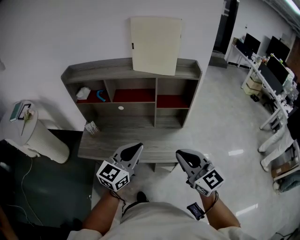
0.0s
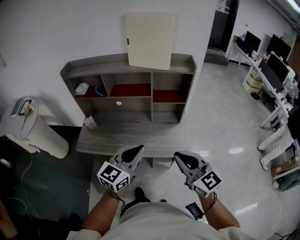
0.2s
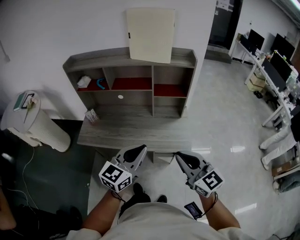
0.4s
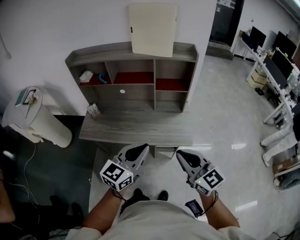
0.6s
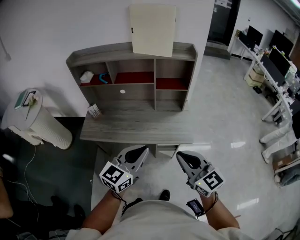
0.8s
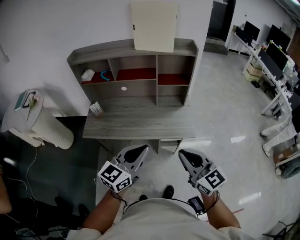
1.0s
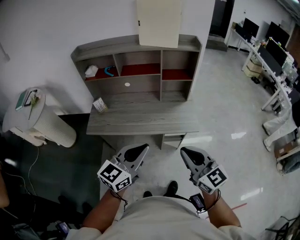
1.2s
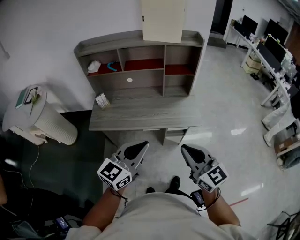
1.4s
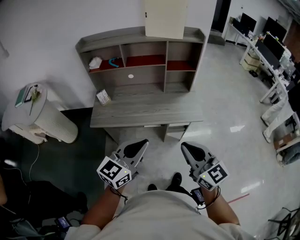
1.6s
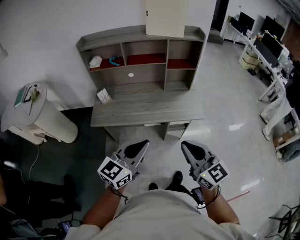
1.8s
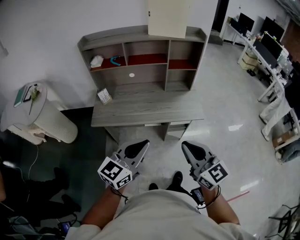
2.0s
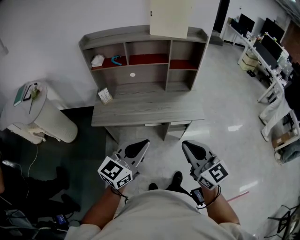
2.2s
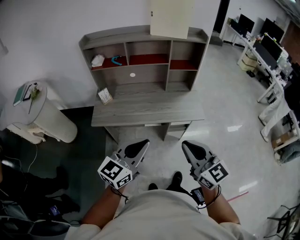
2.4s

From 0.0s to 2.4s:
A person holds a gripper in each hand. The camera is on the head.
From 0.0s to 1.2s: The grippers both shift backward by approximately 15 cm.
From 1.2s to 2.4s: Both grippers move to the left and backward, some 10 cm.

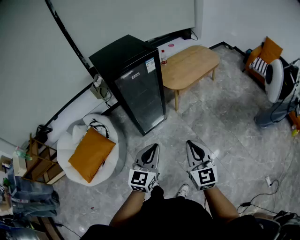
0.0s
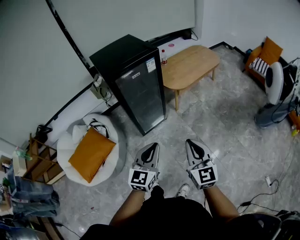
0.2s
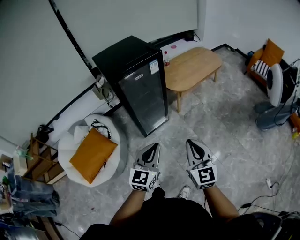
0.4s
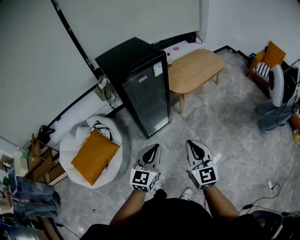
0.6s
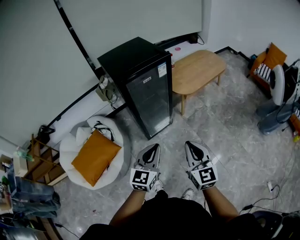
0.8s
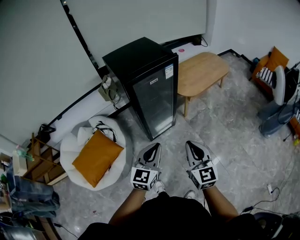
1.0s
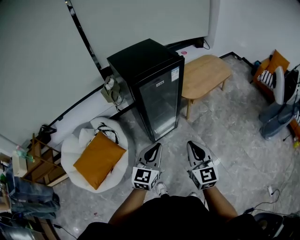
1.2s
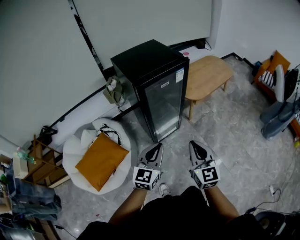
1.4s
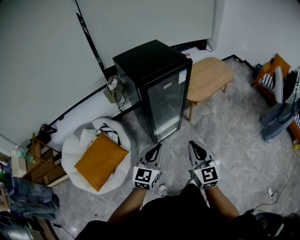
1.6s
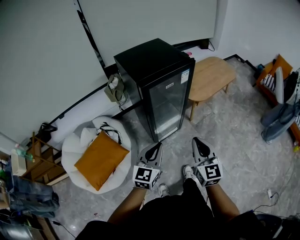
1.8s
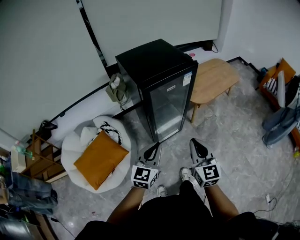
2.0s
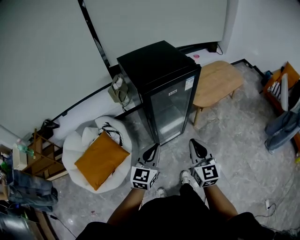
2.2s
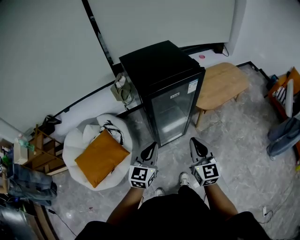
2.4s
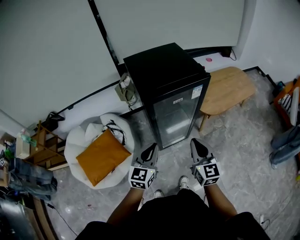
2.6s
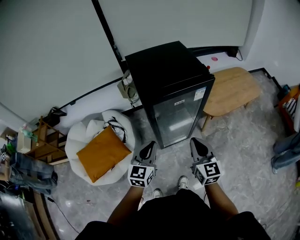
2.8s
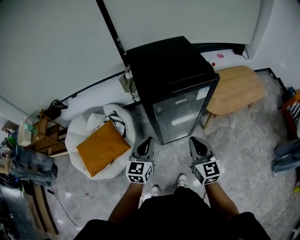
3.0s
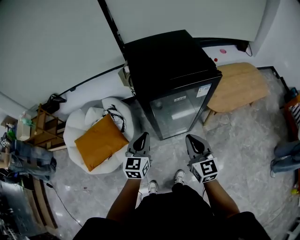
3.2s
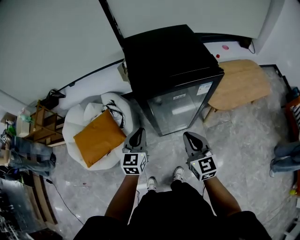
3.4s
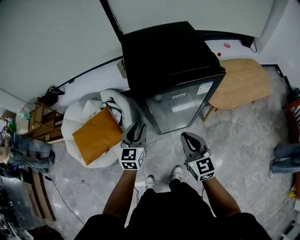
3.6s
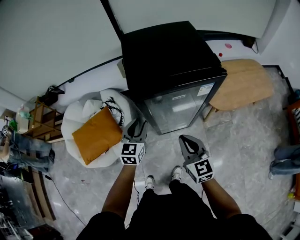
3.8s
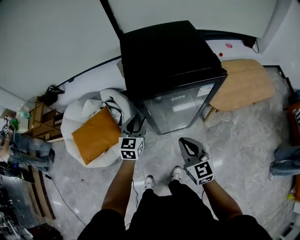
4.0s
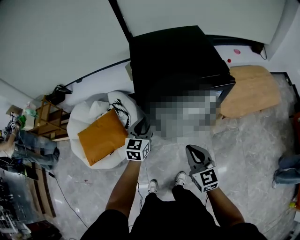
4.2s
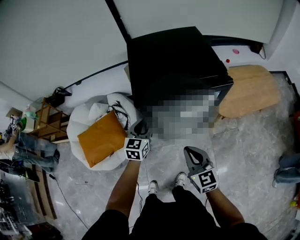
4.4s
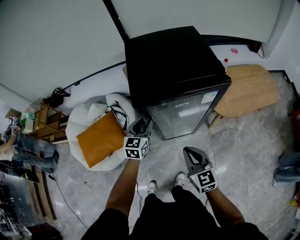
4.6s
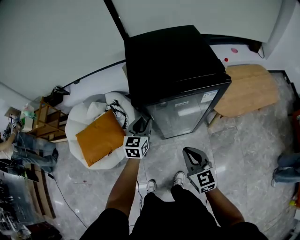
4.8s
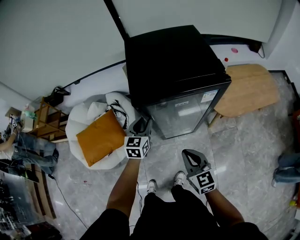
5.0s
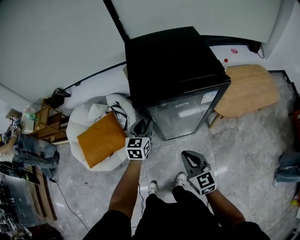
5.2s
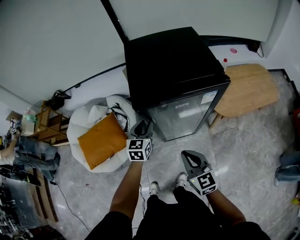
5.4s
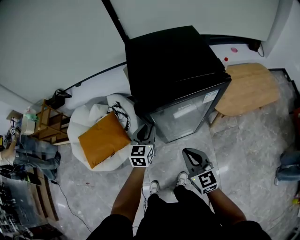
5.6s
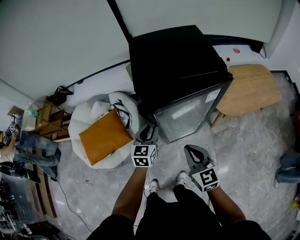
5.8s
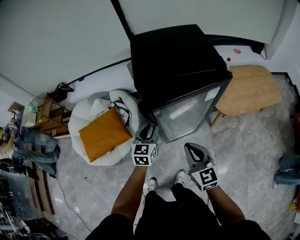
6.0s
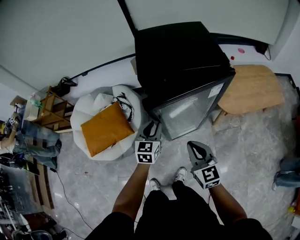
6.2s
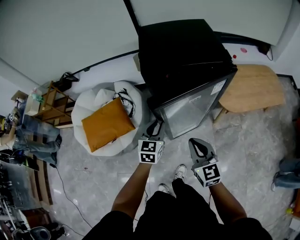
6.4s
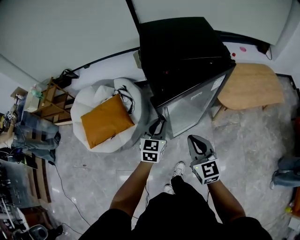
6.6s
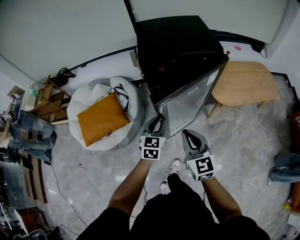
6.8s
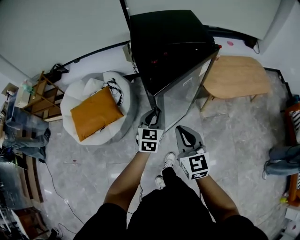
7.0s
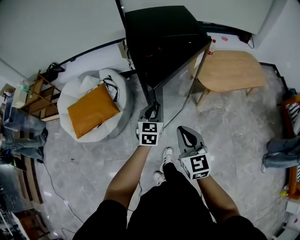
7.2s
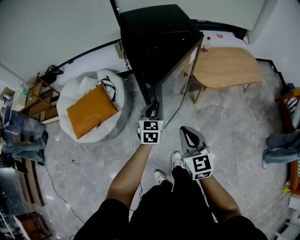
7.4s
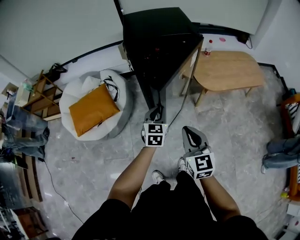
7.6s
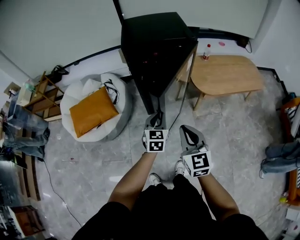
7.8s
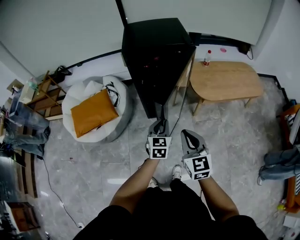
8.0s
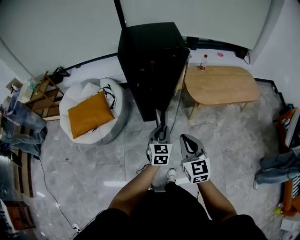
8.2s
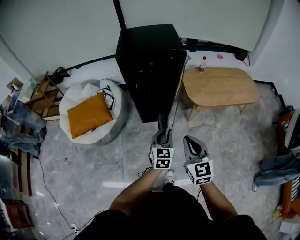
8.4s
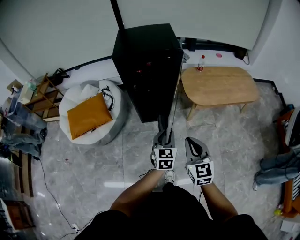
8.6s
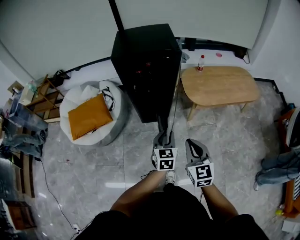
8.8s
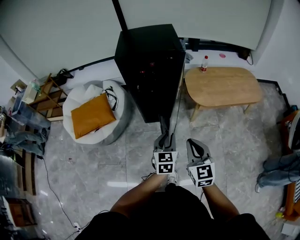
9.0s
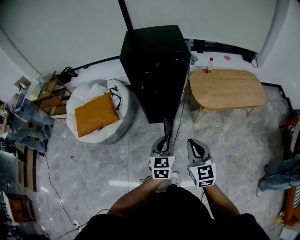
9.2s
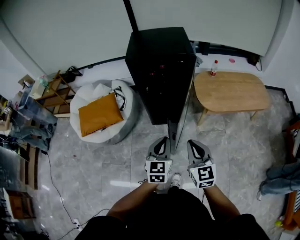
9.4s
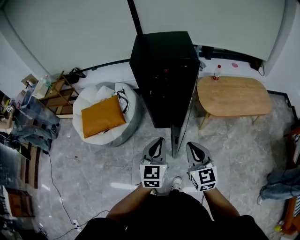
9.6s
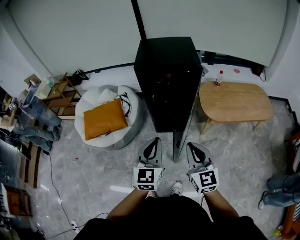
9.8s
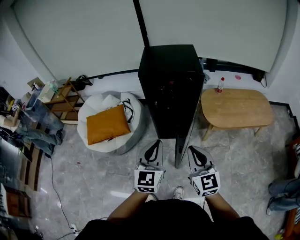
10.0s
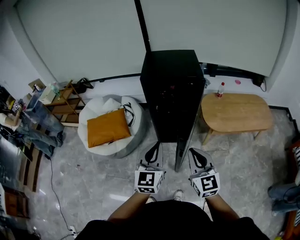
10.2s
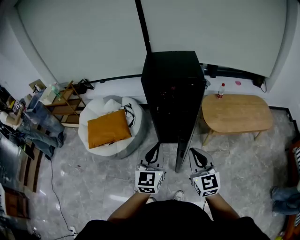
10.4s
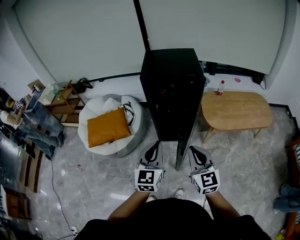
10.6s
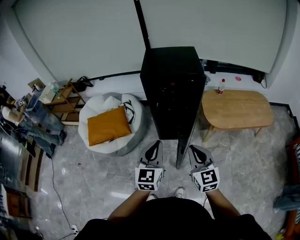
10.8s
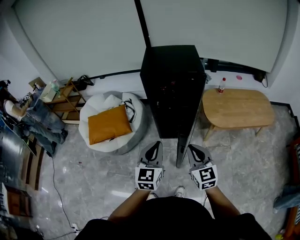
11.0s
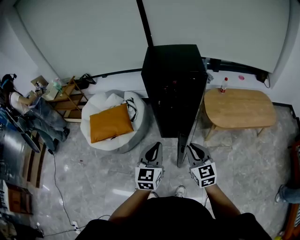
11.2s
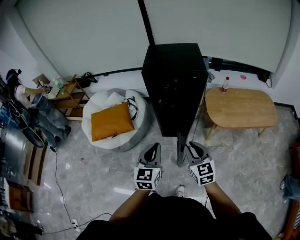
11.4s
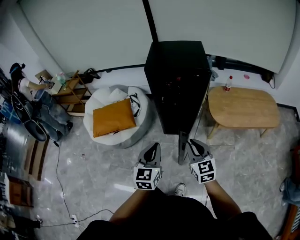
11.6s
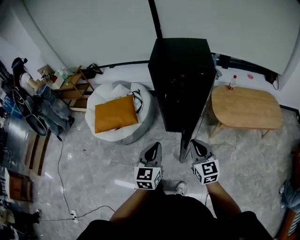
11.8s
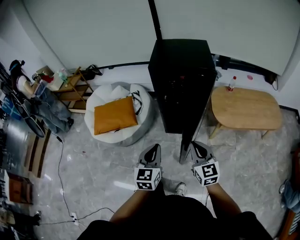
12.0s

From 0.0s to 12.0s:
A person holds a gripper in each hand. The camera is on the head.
From 0.0s to 1.6s: The grippers both shift to the left and forward by about 20 cm.
From 1.6s to 3.0s: The two grippers go roughly 20 cm forward. The left gripper rotates about 20 degrees.
From 3.0s to 4.4s: The left gripper moves forward and downward, about 15 cm, and opens up; the right gripper shifts some 5 cm downward.
From 4.4s to 6.0s: The left gripper heads backward, covering about 5 cm.
From 6.0s to 7.6s: The left gripper travels backward and to the right by roughly 20 cm. The right gripper goes about 20 cm backward.
From 7.6s to 9.0s: The right gripper goes roughly 15 cm to the right. Meanwhile the left gripper is displaced to the right and backward by some 15 cm.
From 9.0s to 10.4s: The left gripper moves upward and to the left, roughly 20 cm, and swivels roughly 20 degrees. The right gripper travels upward and to the left by approximately 10 cm.
From 10.4s to 12.0s: The grippers both shift downward by approximately 10 cm.

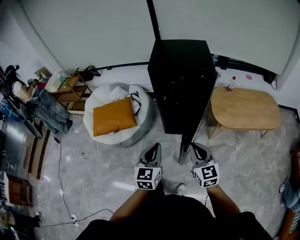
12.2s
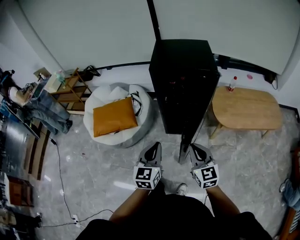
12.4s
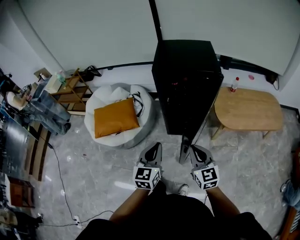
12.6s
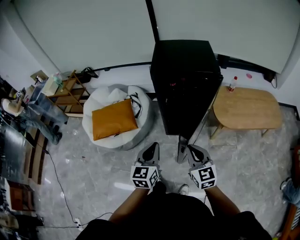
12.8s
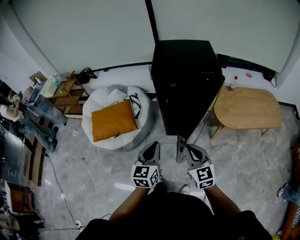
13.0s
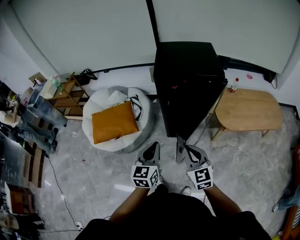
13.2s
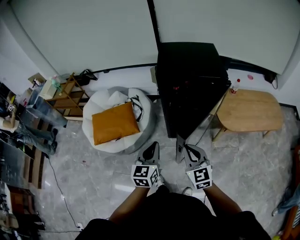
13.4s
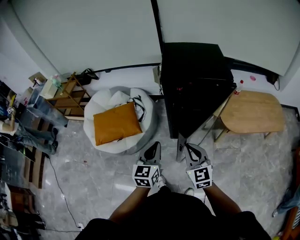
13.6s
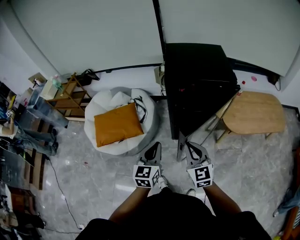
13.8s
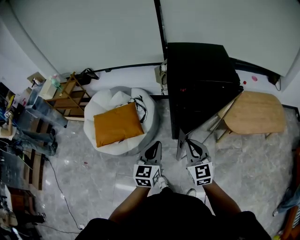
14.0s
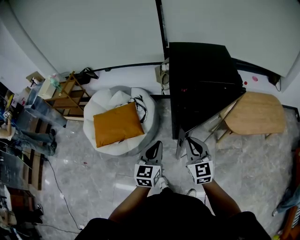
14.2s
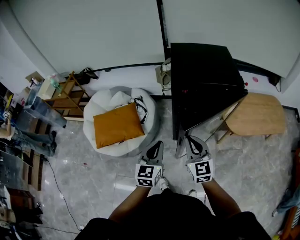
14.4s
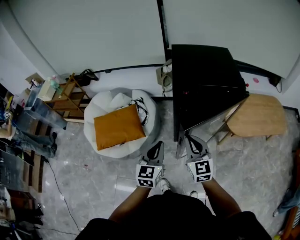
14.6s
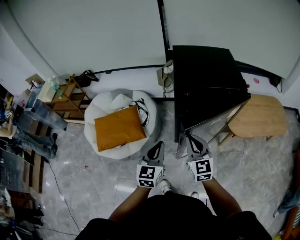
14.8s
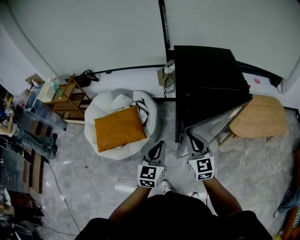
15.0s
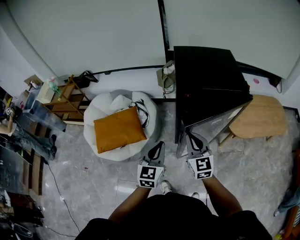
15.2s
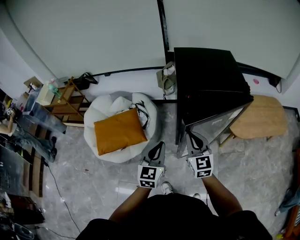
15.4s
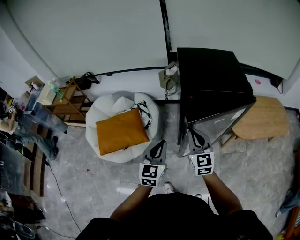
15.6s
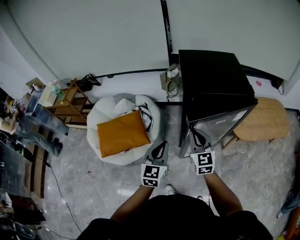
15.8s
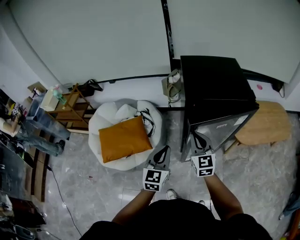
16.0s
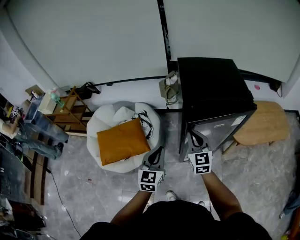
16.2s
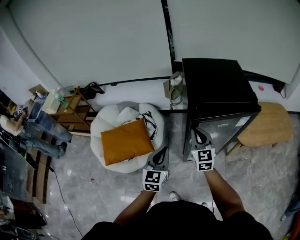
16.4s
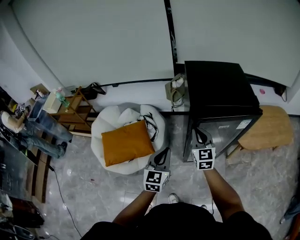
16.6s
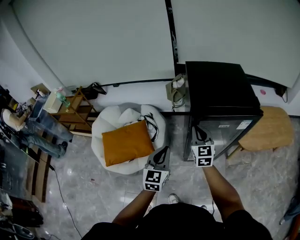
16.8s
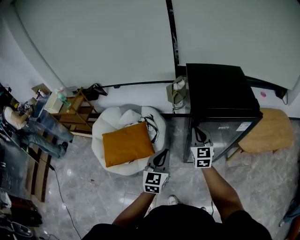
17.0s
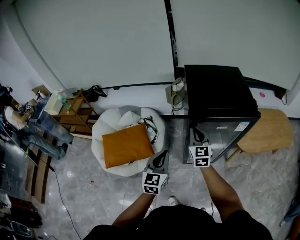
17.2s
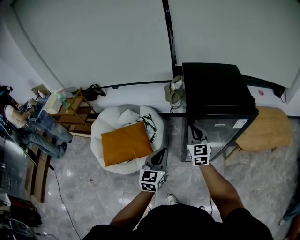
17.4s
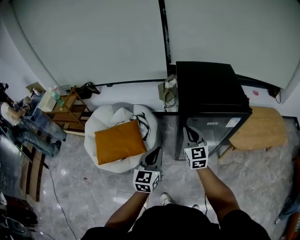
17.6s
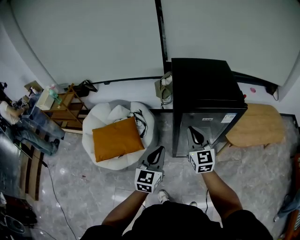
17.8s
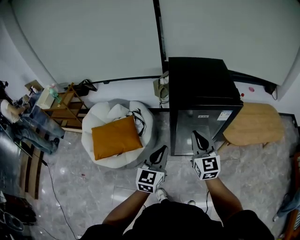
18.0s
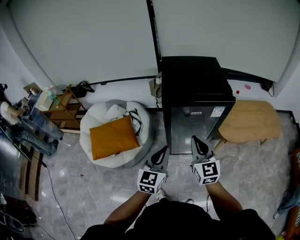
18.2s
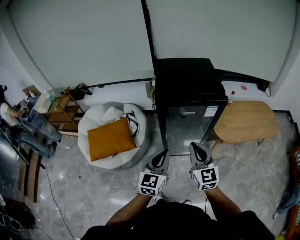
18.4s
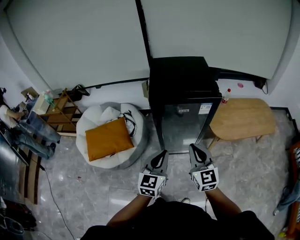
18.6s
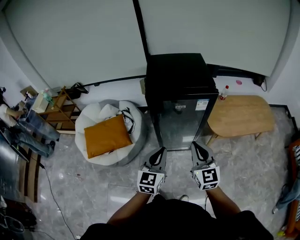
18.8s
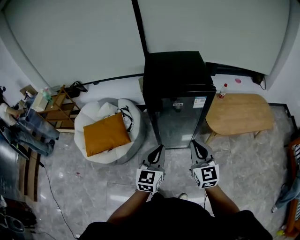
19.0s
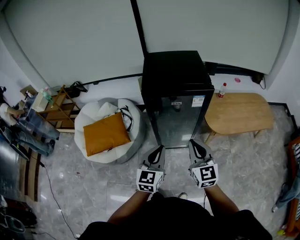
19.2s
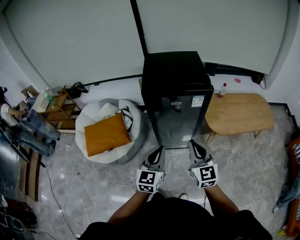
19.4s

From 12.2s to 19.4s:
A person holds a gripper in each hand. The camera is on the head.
From 12.2s to 13.6s: The right gripper is displaced to the left and forward by some 15 cm; the left gripper goes some 15 cm forward and to the left.
From 13.6s to 15.0s: The right gripper heads forward and to the left, covering about 10 cm. The left gripper heads forward, covering approximately 5 cm.
From 15.0s to 16.6s: The right gripper moves forward, about 10 cm, while the left gripper shifts about 5 cm forward.
From 16.6s to 18.0s: The right gripper is displaced backward, to the right and upward by some 15 cm, while the left gripper travels to the right and backward by roughly 10 cm.
From 18.0s to 19.4s: The left gripper heads to the right and backward, covering approximately 15 cm, while the right gripper shifts some 15 cm backward and to the right.

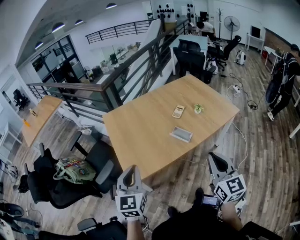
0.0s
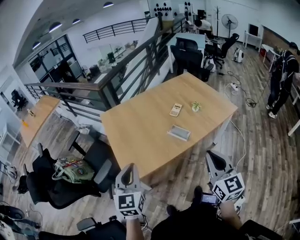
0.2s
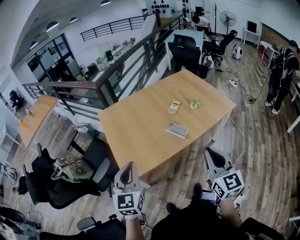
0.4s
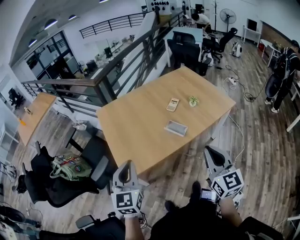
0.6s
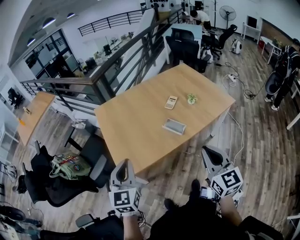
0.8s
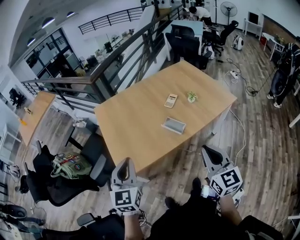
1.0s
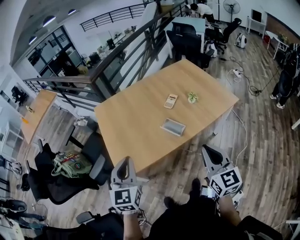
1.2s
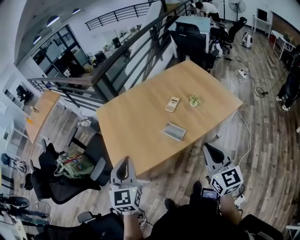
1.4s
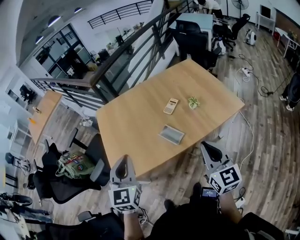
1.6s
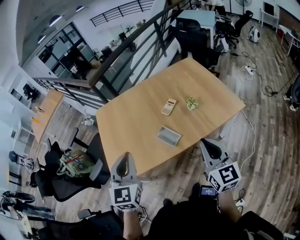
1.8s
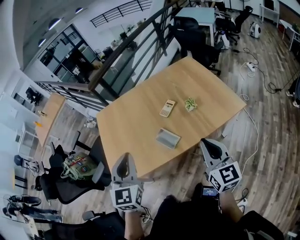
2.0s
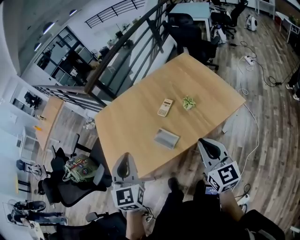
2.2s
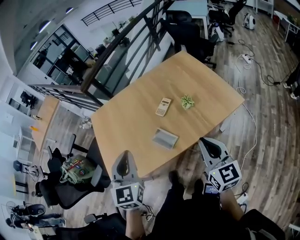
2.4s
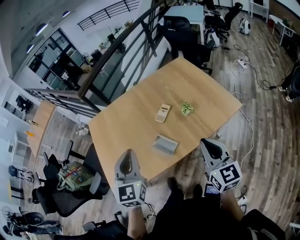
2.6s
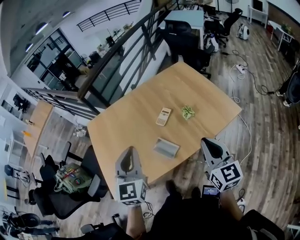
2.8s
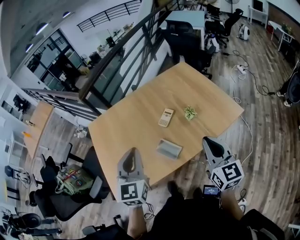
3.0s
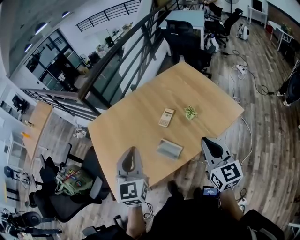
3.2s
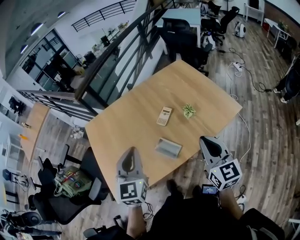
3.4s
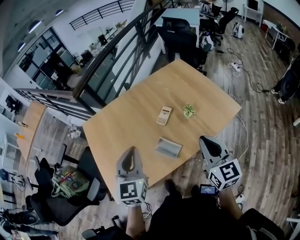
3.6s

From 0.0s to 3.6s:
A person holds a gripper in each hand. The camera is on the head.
From 0.0s to 1.8s: Both grippers travel together to the right and forward, approximately 25 cm.
From 1.8s to 3.6s: The grippers both shift forward by some 10 cm.
